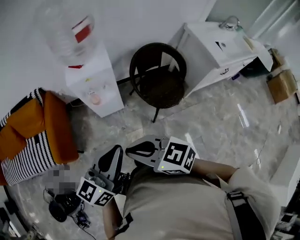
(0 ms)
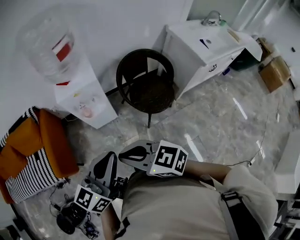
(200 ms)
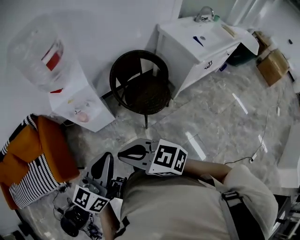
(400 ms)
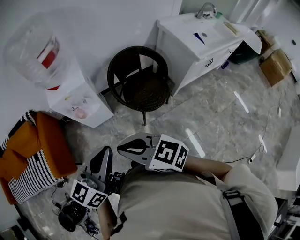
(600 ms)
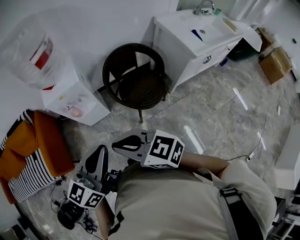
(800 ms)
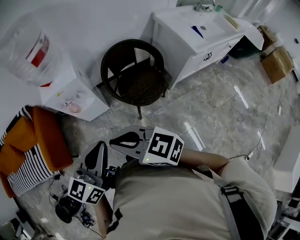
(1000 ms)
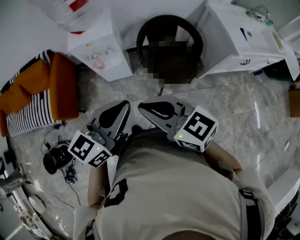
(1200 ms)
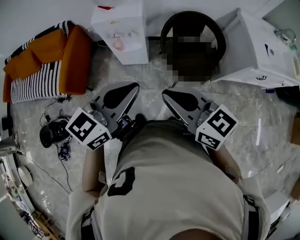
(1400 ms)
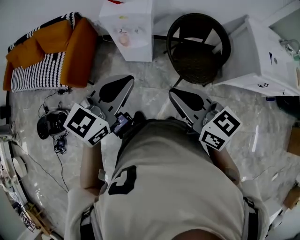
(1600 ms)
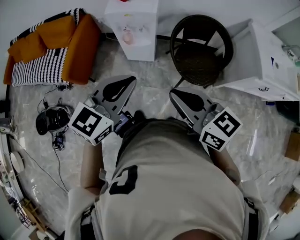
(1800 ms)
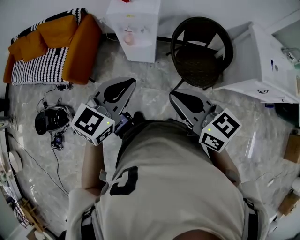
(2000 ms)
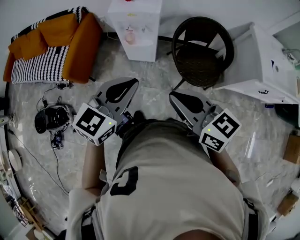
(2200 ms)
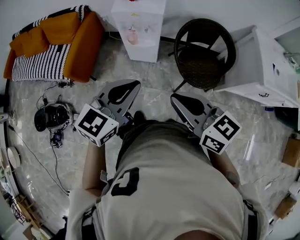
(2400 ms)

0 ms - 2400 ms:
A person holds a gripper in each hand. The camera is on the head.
0 ms - 1200 ms: Both grippers travel together to the right, about 20 cm.
1200 ms - 2400 ms: The left gripper travels to the left by roughly 10 cm.

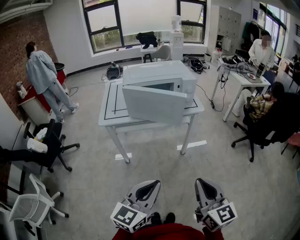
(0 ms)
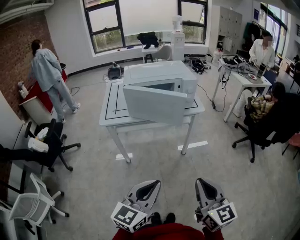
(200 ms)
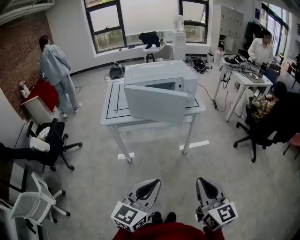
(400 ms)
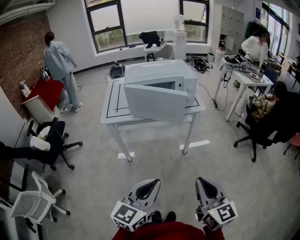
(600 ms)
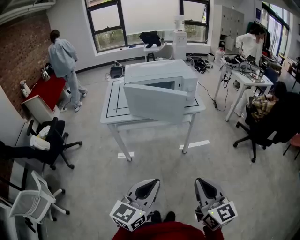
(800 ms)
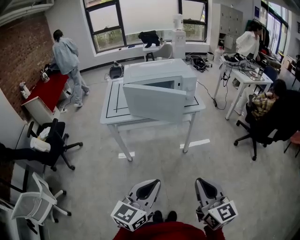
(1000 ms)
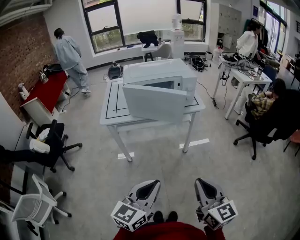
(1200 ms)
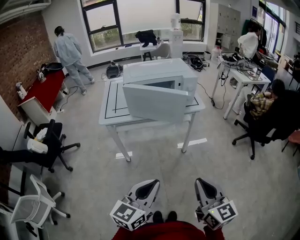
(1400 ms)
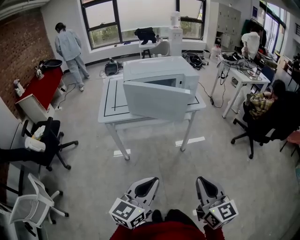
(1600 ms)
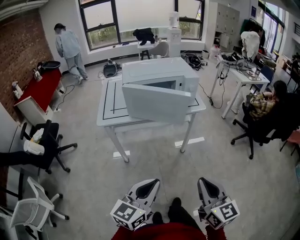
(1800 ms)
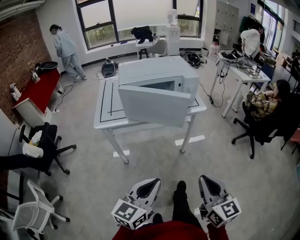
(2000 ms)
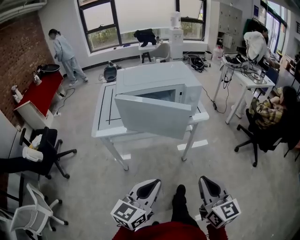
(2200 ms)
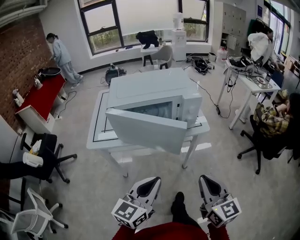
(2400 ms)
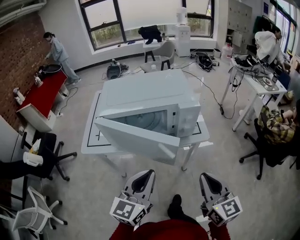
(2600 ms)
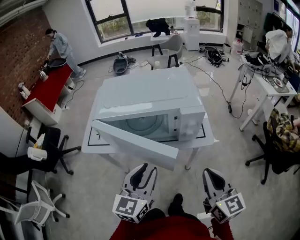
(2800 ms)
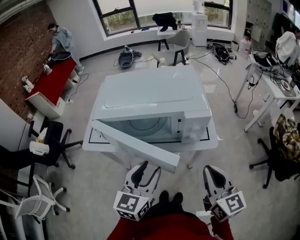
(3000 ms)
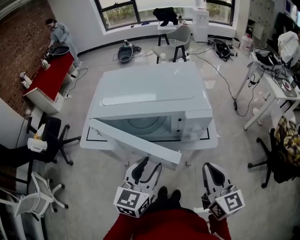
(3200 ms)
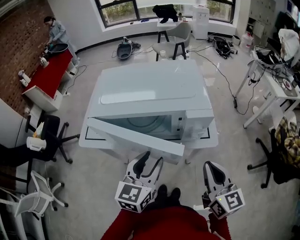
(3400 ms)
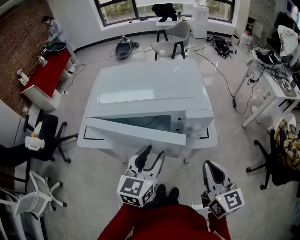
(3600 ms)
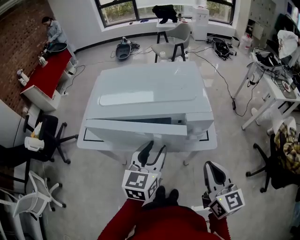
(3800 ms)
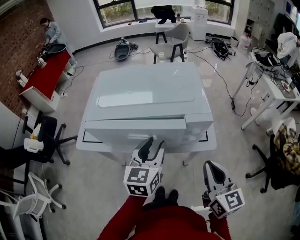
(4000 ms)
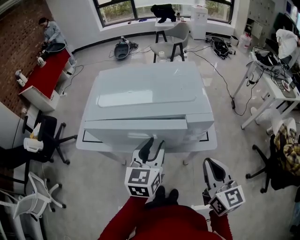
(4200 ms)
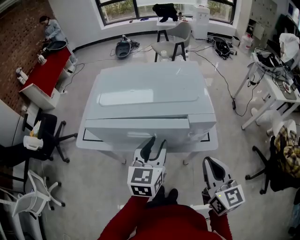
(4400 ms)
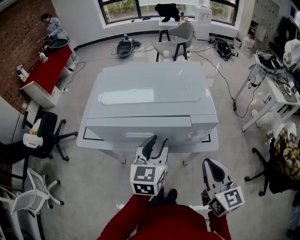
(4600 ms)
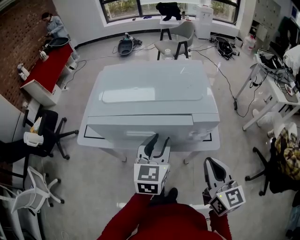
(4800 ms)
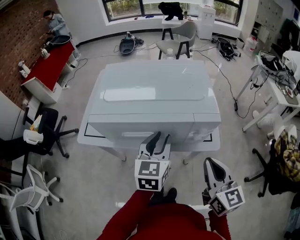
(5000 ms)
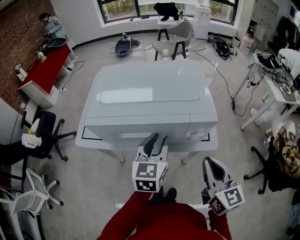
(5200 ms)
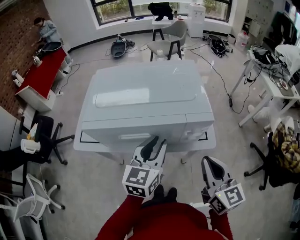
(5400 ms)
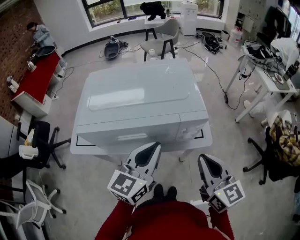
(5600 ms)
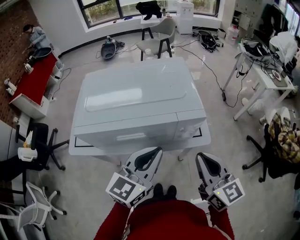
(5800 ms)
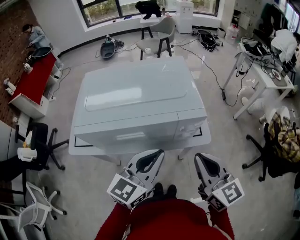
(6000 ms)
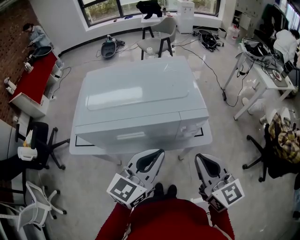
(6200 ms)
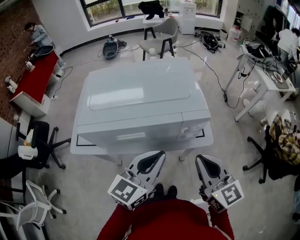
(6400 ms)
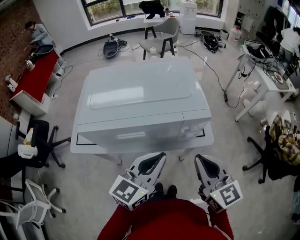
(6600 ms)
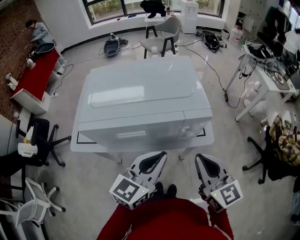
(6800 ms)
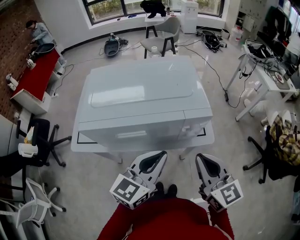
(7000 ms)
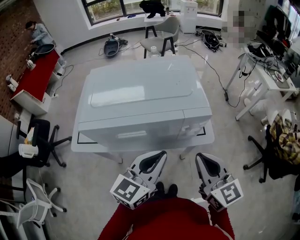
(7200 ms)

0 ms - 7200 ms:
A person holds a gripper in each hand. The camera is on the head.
0 ms - 1400 ms: The grippers stay close to where they were, moving slightly.
1400 ms - 2800 ms: The two grippers go approximately 30 cm forward. The left gripper changes its angle by about 20 degrees, and opens up.
2800 ms - 4400 ms: The right gripper is displaced forward by roughly 10 cm, while the left gripper goes roughly 15 cm forward.
4400 ms - 5800 ms: The left gripper changes place by roughly 10 cm, turns by about 30 degrees, and closes.
5800 ms - 7200 ms: The grippers stay close to where they were, moving slightly.

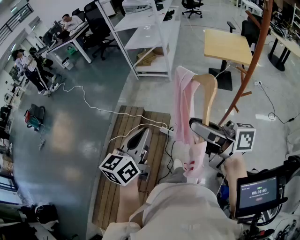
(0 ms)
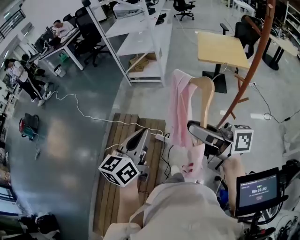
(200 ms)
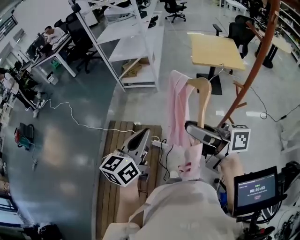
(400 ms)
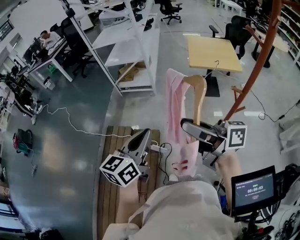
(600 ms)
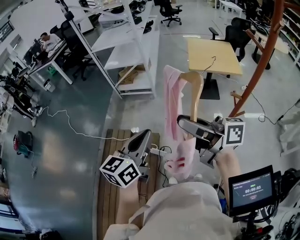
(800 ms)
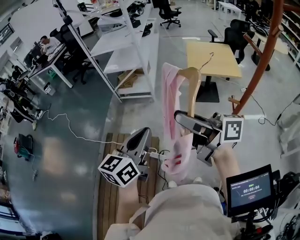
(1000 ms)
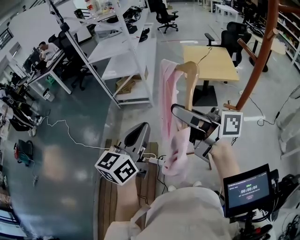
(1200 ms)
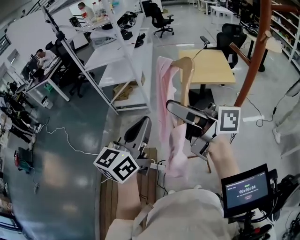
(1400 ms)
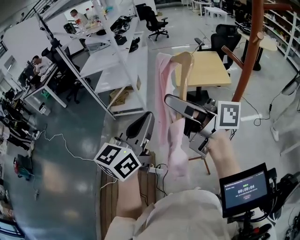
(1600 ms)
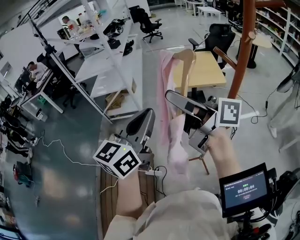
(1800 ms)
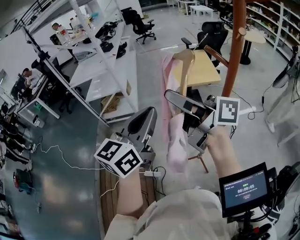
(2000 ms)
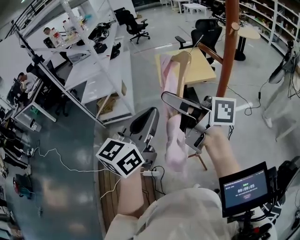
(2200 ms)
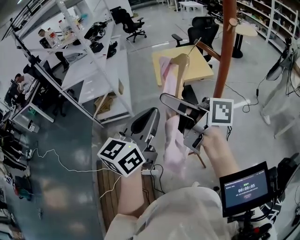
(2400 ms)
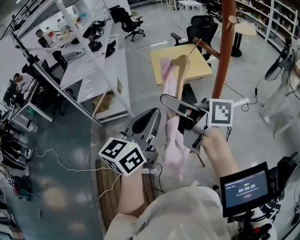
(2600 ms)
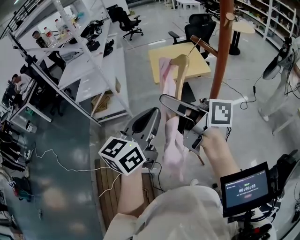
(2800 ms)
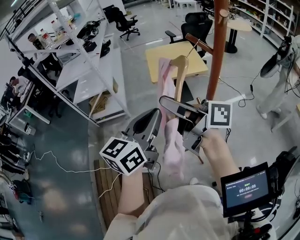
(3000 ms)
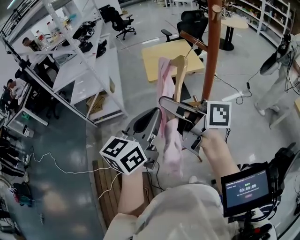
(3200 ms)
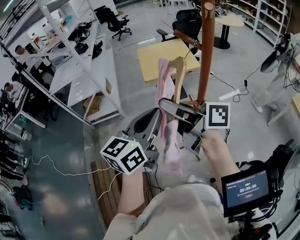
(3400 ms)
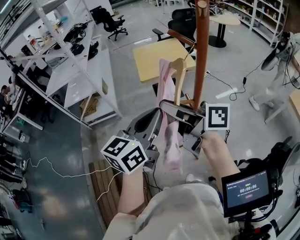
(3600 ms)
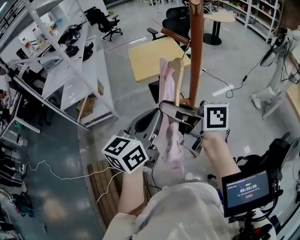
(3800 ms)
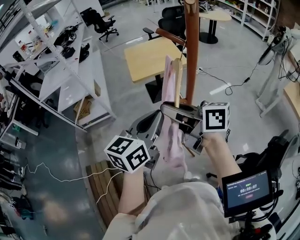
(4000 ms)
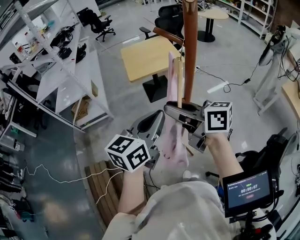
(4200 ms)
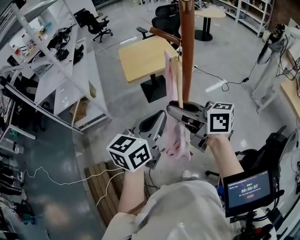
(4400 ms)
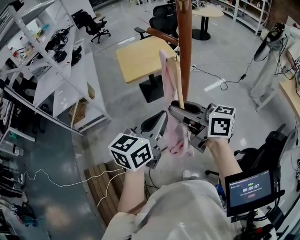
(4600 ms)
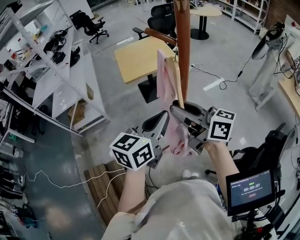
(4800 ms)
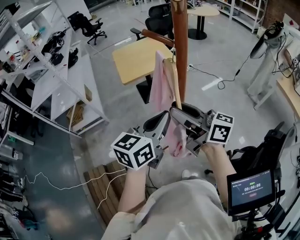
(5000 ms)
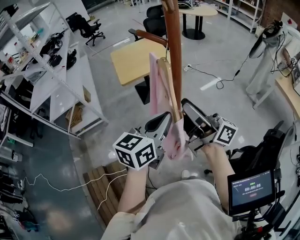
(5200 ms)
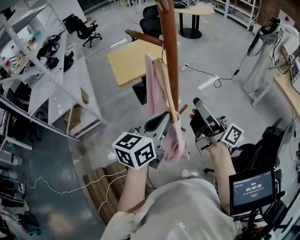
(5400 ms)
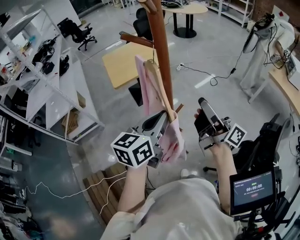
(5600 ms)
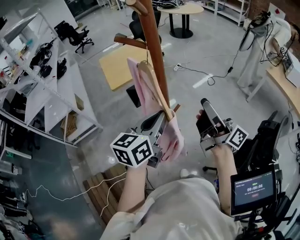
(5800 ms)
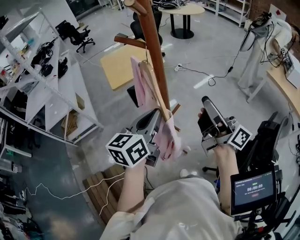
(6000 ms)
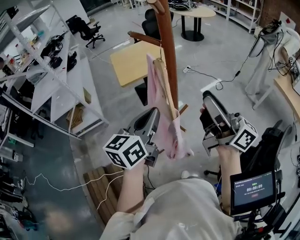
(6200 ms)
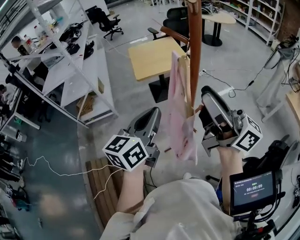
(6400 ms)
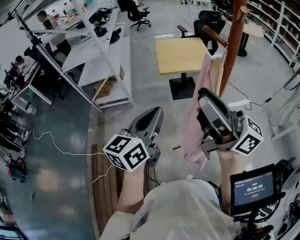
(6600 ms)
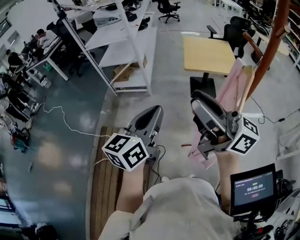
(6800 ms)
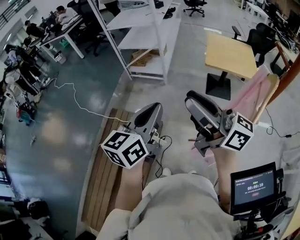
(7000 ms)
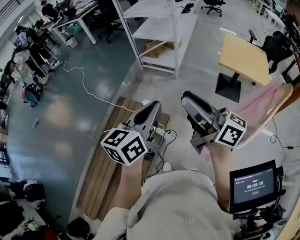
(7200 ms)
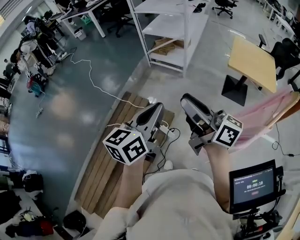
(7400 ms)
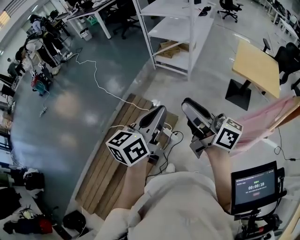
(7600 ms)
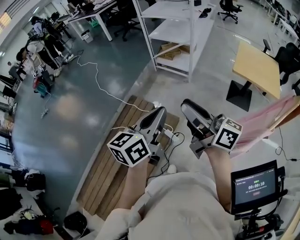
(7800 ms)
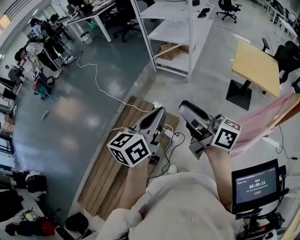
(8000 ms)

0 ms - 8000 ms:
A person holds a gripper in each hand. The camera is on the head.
0 ms - 1600 ms: Both grippers move forward, to the right and upward, roughly 35 cm. The left gripper turns by approximately 20 degrees.
1600 ms - 3200 ms: The right gripper shifts some 10 cm to the right and downward. The left gripper goes roughly 15 cm to the right.
3200 ms - 4800 ms: Both grippers travel together to the right and downward, roughly 10 cm. The right gripper swivels roughly 30 degrees.
4800 ms - 6400 ms: The left gripper heads to the left, covering about 5 cm, while the right gripper is displaced upward by some 10 cm, travels to the right and back again, roughly 20 cm each way, and swivels approximately 20 degrees.
6400 ms - 8000 ms: The right gripper moves approximately 40 cm, and swivels roughly 50 degrees, while the left gripper changes place by some 35 cm, and rotates approximately 40 degrees.

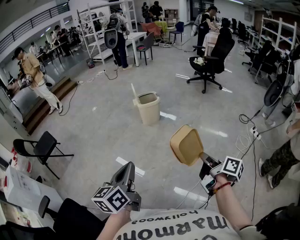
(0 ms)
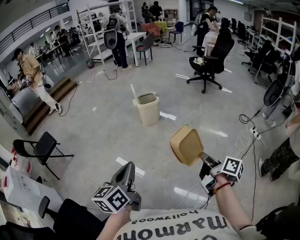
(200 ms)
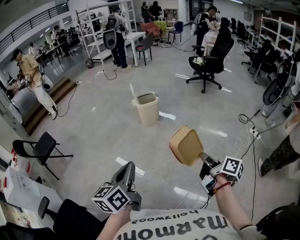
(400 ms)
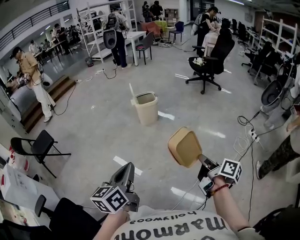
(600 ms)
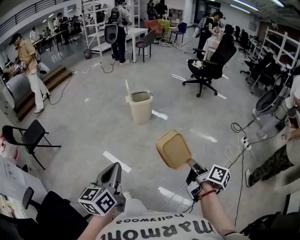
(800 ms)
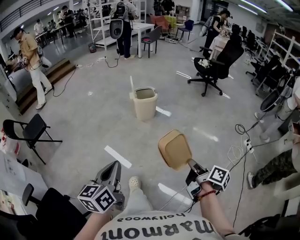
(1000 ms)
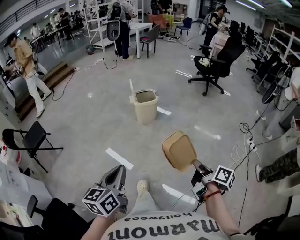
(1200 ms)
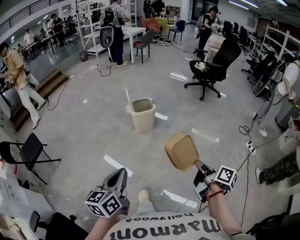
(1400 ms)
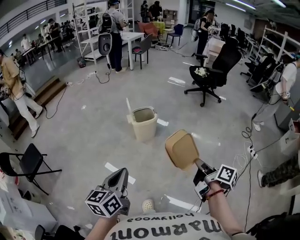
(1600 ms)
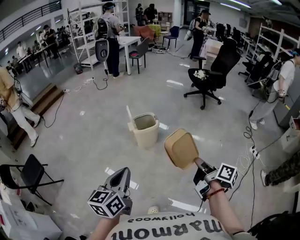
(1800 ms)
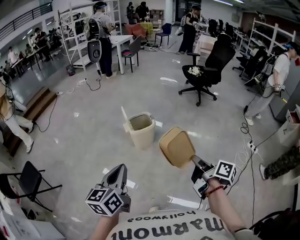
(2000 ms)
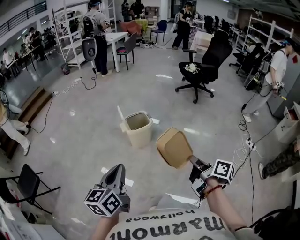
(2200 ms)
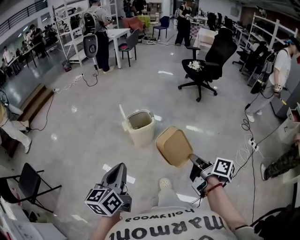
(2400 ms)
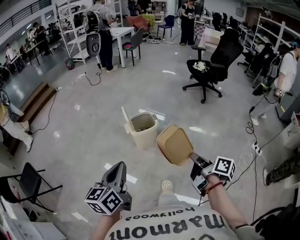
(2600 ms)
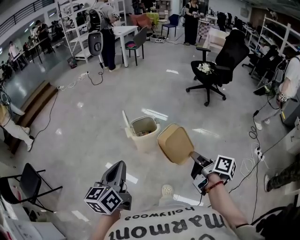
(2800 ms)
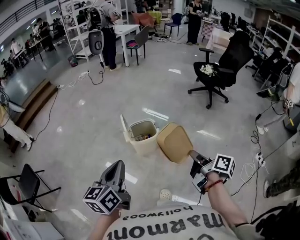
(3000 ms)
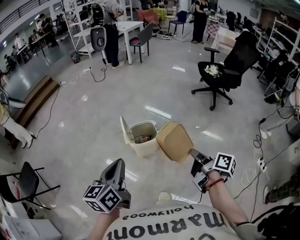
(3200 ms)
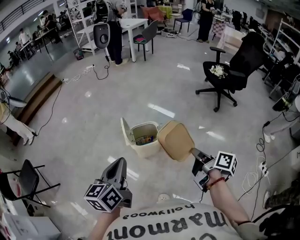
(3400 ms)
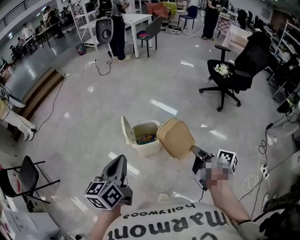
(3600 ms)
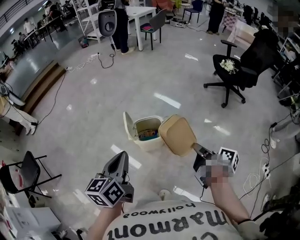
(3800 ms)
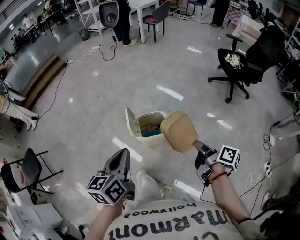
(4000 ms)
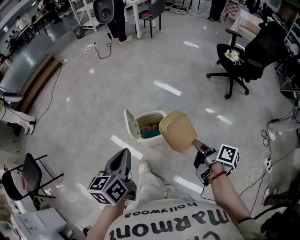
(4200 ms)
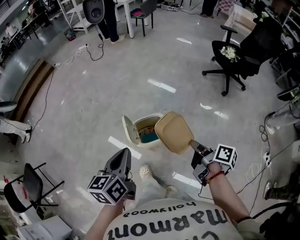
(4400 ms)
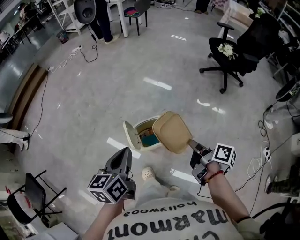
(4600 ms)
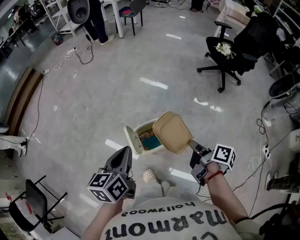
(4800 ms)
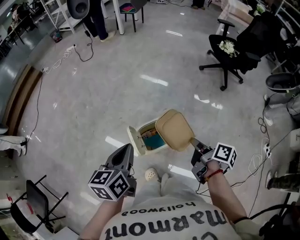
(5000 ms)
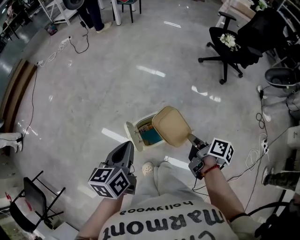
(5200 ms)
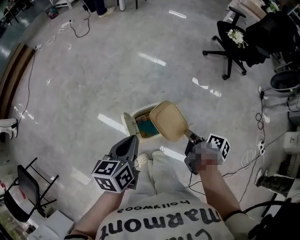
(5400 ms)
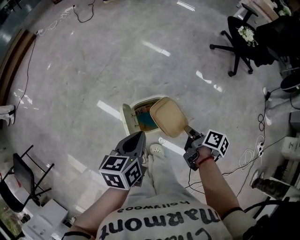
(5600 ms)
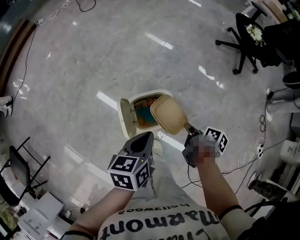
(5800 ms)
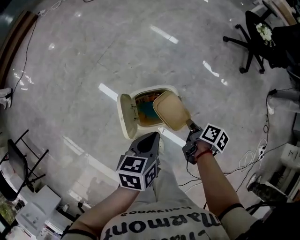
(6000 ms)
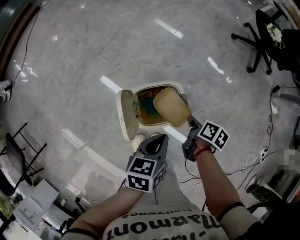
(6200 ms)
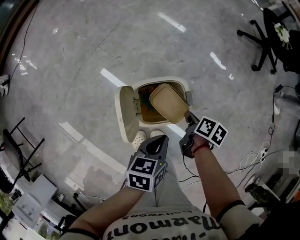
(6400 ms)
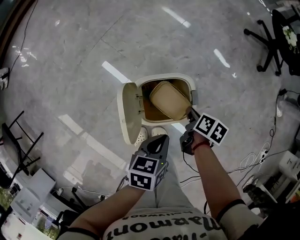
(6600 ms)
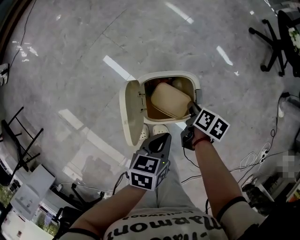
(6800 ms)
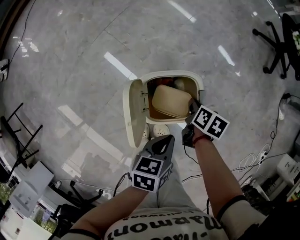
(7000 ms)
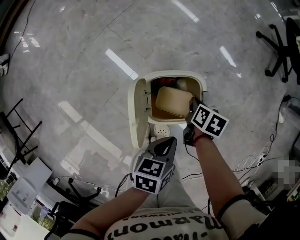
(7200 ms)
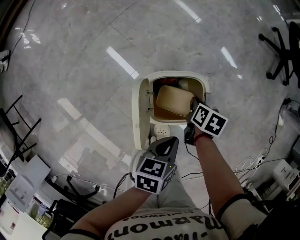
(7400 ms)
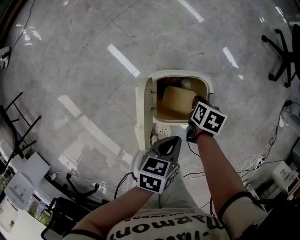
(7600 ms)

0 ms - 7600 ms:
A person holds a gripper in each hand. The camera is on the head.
0 ms - 1600 ms: The two grippers go some 25 cm forward.
1600 ms - 3000 ms: The grippers both shift forward by about 30 cm.
3000 ms - 4600 ms: Both grippers travel together forward, roughly 30 cm.
4600 ms - 6000 ms: The grippers both shift downward by roughly 25 cm. The right gripper changes its angle by approximately 30 degrees. Meanwhile the left gripper turns by some 20 degrees.
6000 ms - 7600 ms: The right gripper heads downward, to the left and forward, covering about 20 cm, and rotates approximately 40 degrees, while the left gripper travels downward by roughly 15 cm.
